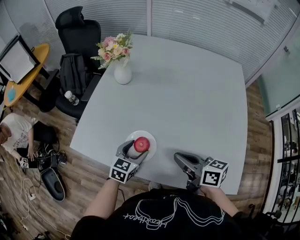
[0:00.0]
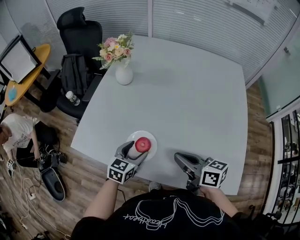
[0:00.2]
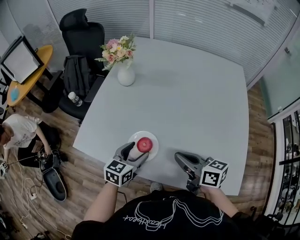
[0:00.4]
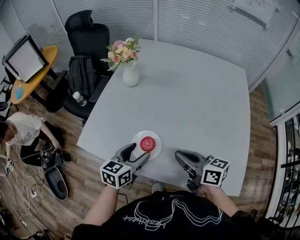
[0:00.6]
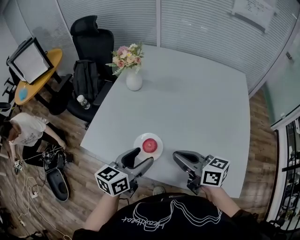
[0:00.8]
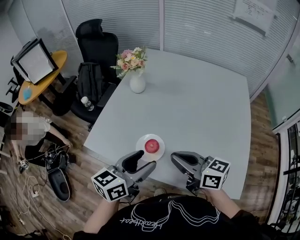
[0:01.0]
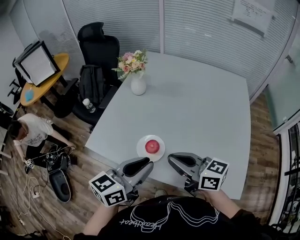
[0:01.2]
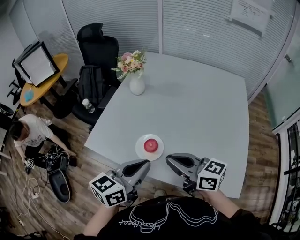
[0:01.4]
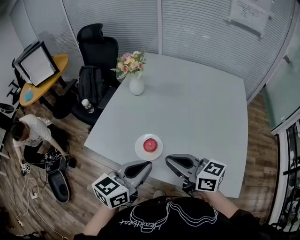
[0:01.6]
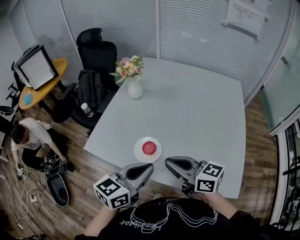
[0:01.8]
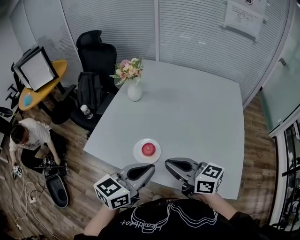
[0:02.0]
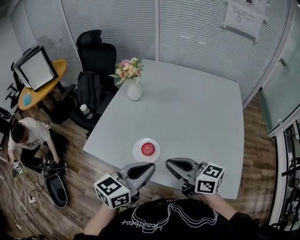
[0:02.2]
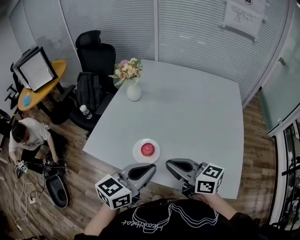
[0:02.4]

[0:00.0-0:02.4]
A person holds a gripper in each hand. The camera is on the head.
0:00.0 to 0:01.2: The left gripper moves upward and backward, roughly 25 cm, changes its angle by about 30 degrees, and closes its fingers; the right gripper shifts about 10 cm upward and to the left, and turns by roughly 20 degrees.
0:01.2 to 0:02.4: The grippers make only small movements.

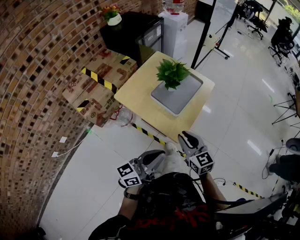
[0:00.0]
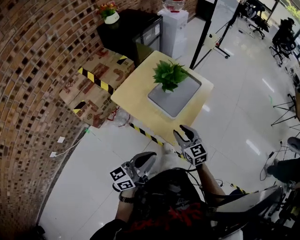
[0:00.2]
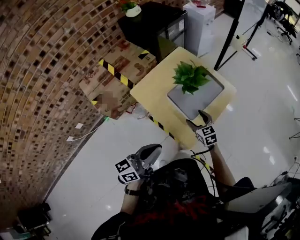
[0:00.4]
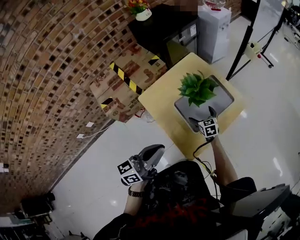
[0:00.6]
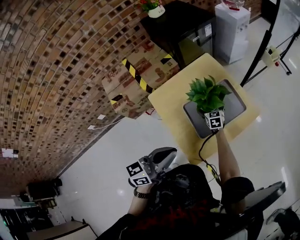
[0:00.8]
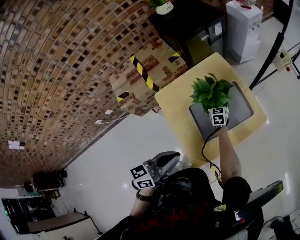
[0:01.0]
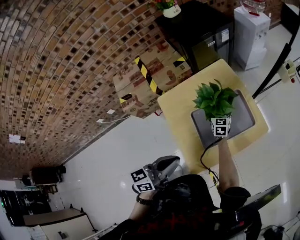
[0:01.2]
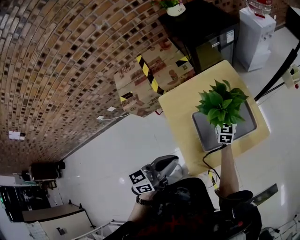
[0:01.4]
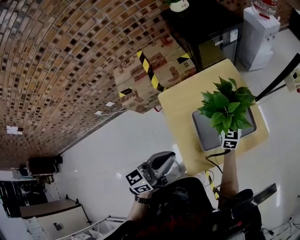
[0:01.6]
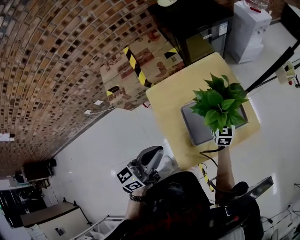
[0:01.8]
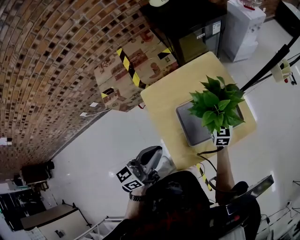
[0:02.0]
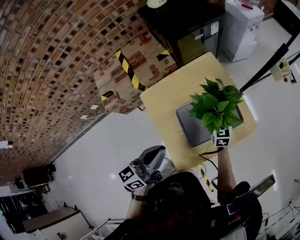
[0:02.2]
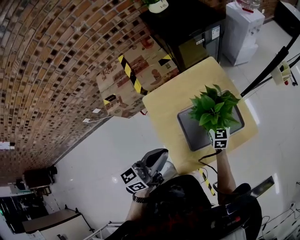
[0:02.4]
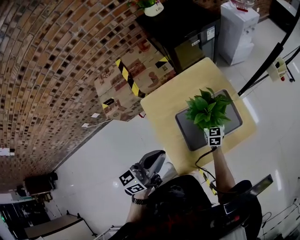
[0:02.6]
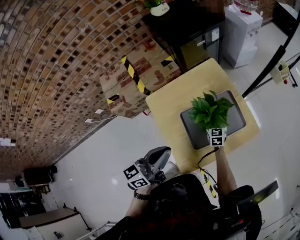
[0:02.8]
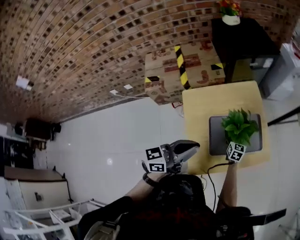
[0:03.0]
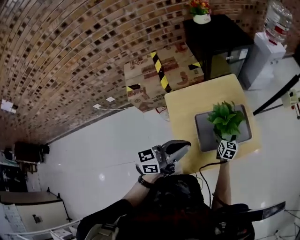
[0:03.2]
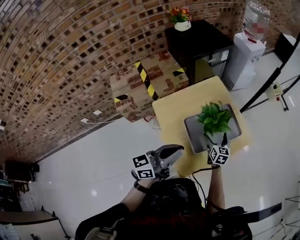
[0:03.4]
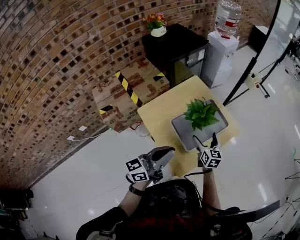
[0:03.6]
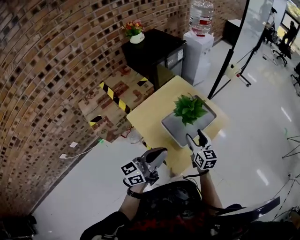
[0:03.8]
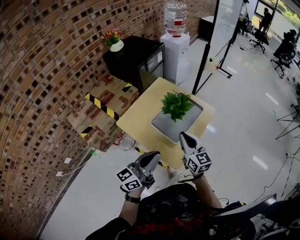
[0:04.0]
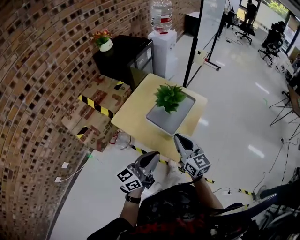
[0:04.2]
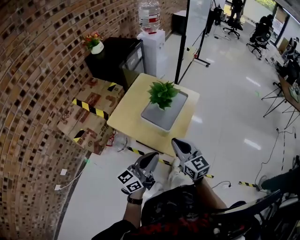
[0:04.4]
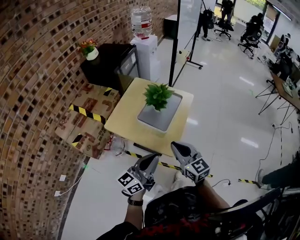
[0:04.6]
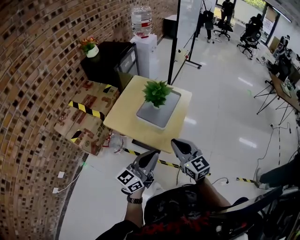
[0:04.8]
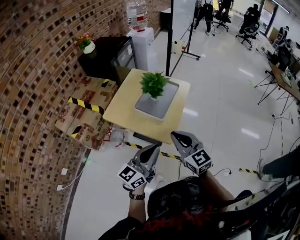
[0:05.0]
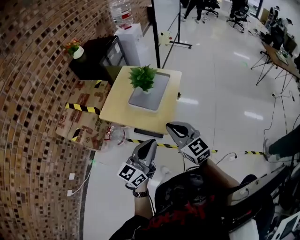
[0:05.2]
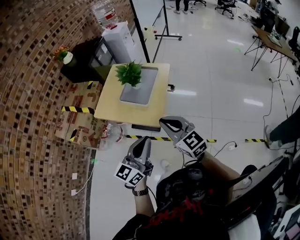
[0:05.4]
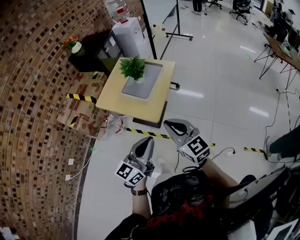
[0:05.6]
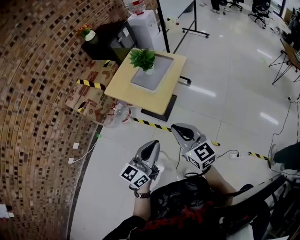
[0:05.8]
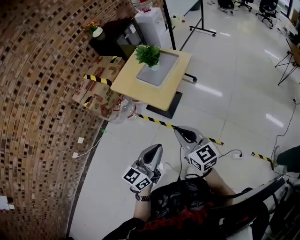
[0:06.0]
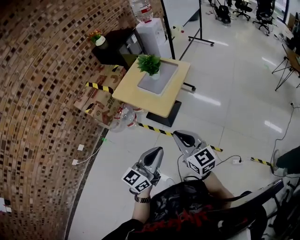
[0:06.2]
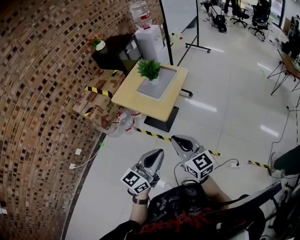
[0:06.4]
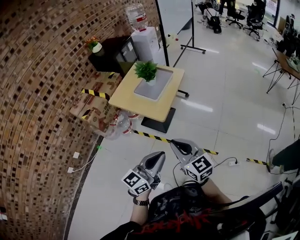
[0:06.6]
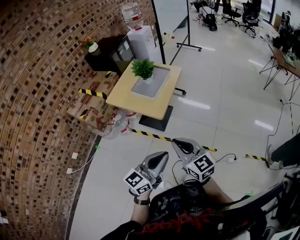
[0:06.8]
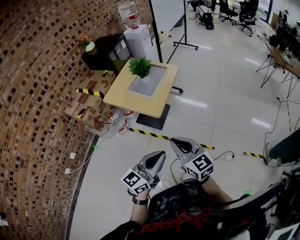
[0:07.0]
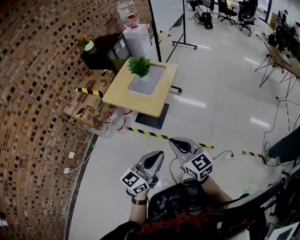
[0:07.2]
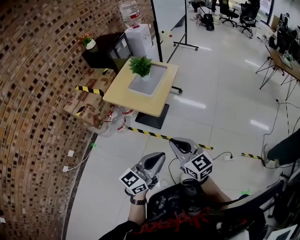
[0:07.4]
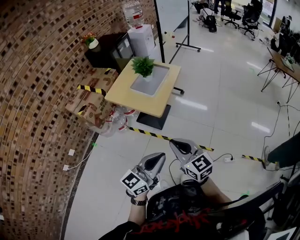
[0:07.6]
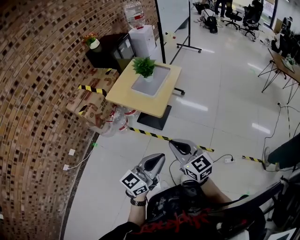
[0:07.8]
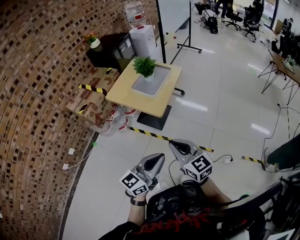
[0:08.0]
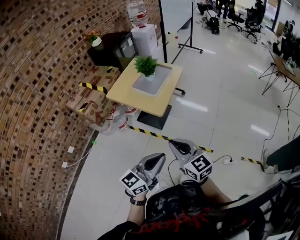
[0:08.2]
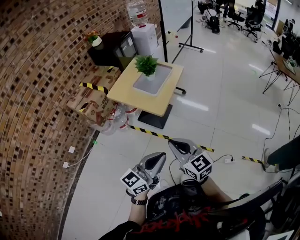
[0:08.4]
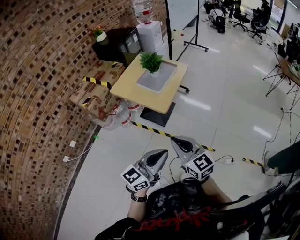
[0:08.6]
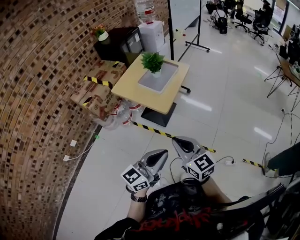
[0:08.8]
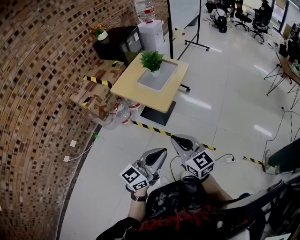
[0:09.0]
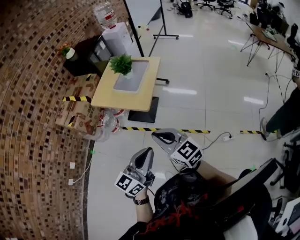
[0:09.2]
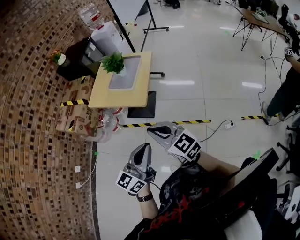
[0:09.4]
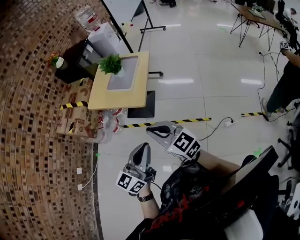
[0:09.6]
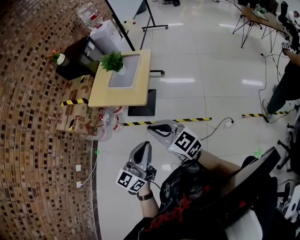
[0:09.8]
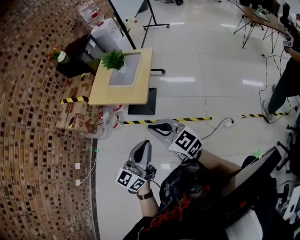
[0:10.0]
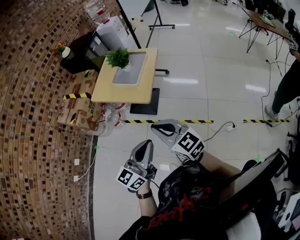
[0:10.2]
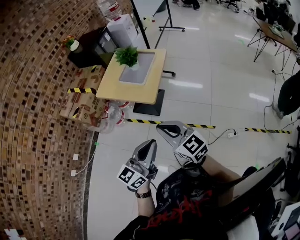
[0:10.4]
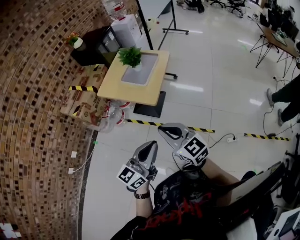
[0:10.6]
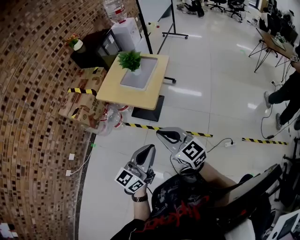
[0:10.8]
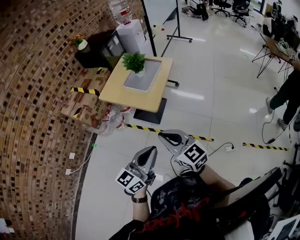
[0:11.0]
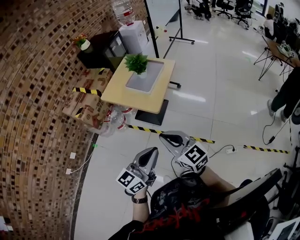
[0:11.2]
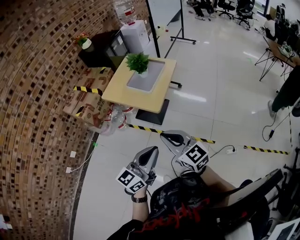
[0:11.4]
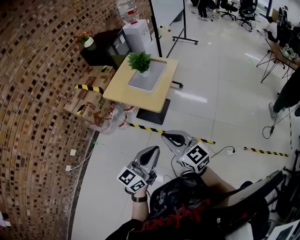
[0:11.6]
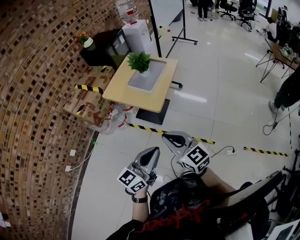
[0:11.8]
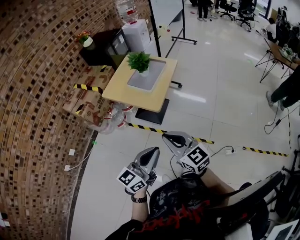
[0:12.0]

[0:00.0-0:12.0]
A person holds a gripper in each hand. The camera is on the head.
0:00.0 to 0:01.6: The right gripper travels forward by about 40 cm, and opens; the left gripper heads forward, covering about 25 cm, and swivels some 40 degrees.
0:01.6 to 0:03.0: The right gripper moves downward, roughly 20 cm.
0:03.0 to 0:04.4: The left gripper moves backward, roughly 20 cm, and swivels some 30 degrees. Meanwhile the right gripper shifts approximately 50 cm backward and upward, changes its angle by some 30 degrees, and closes.
0:04.4 to 0:06.0: The two grippers go about 30 cm backward and to the right. The left gripper rotates some 20 degrees.
0:06.0 to 0:07.6: Both grippers travel together backward, roughly 10 cm.
0:07.6 to 0:10.4: The grippers stay close to where they were, moving slightly.
0:10.4 to 0:12.0: Neither gripper changes place.

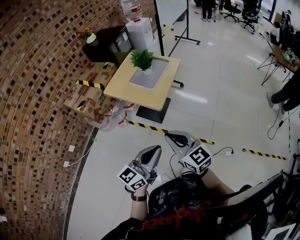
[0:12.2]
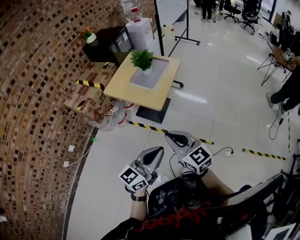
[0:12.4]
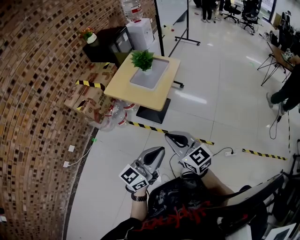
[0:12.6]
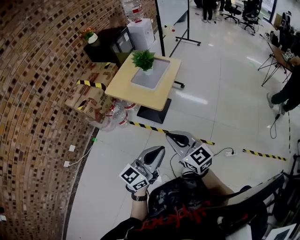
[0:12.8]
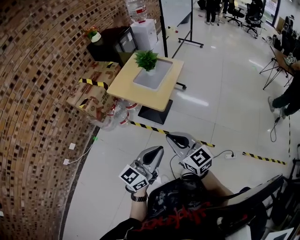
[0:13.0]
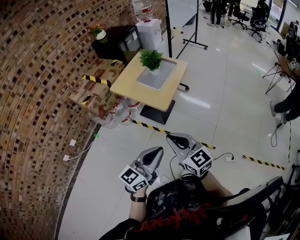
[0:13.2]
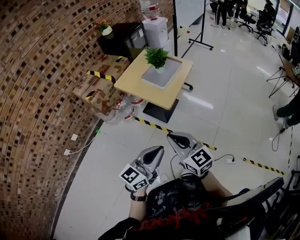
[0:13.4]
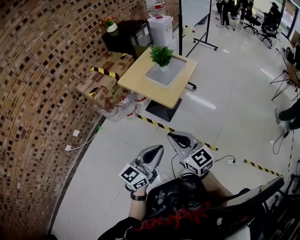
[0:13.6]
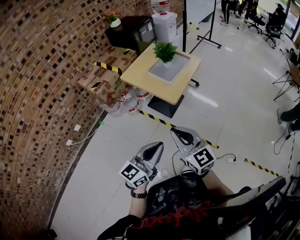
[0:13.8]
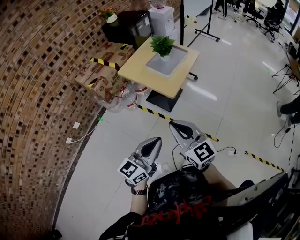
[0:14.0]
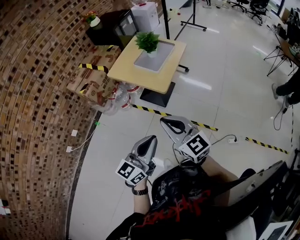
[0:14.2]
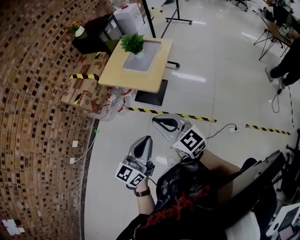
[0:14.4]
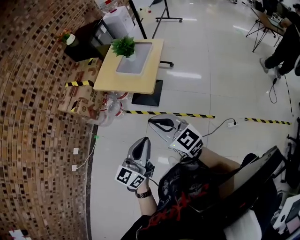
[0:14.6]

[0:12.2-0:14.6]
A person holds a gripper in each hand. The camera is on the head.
0:12.2 to 0:14.6: There are only small adjustments of the grippers.

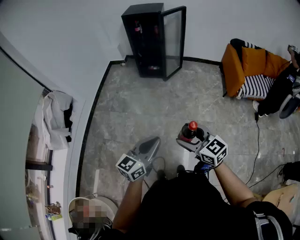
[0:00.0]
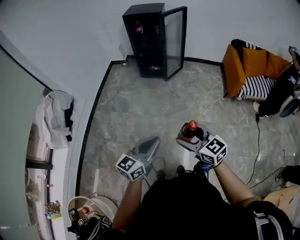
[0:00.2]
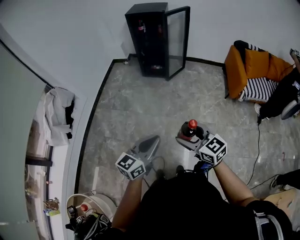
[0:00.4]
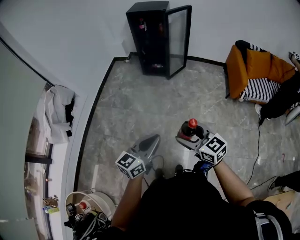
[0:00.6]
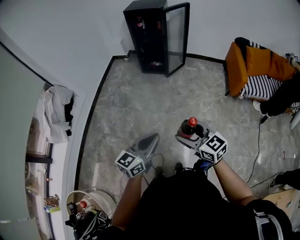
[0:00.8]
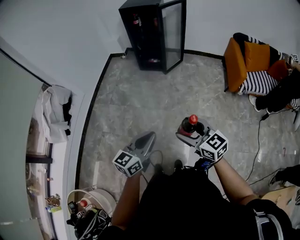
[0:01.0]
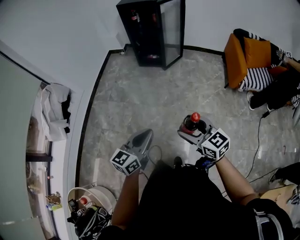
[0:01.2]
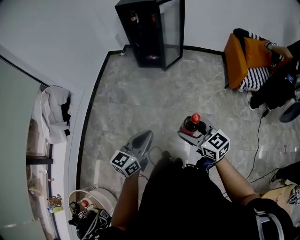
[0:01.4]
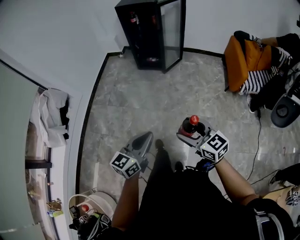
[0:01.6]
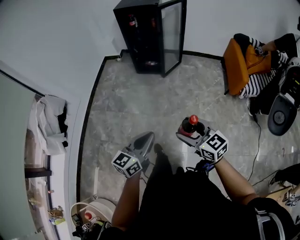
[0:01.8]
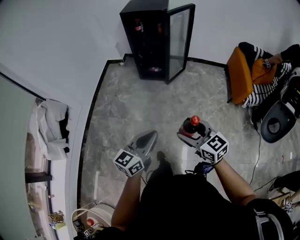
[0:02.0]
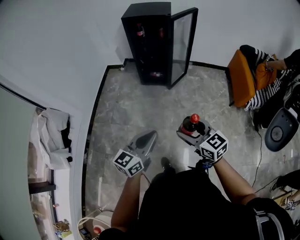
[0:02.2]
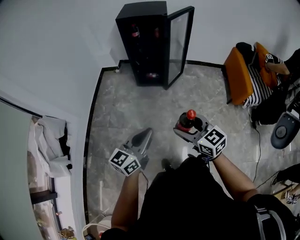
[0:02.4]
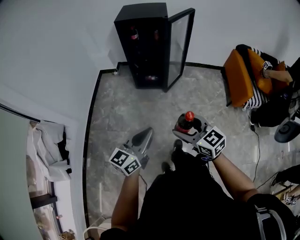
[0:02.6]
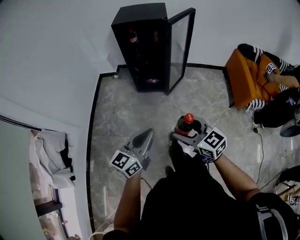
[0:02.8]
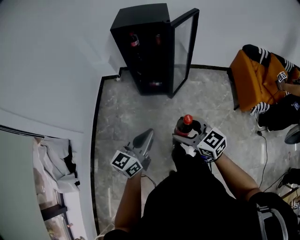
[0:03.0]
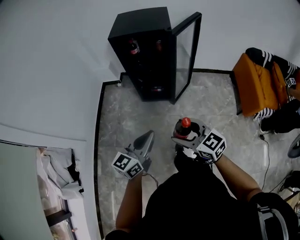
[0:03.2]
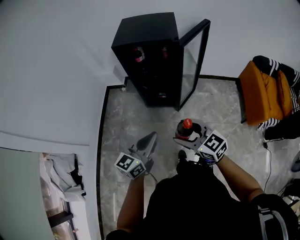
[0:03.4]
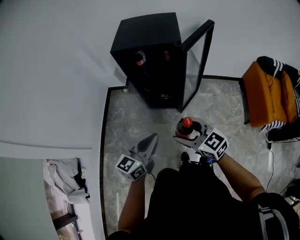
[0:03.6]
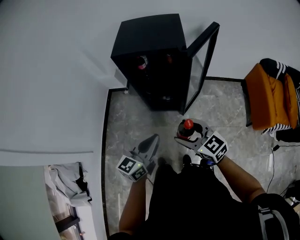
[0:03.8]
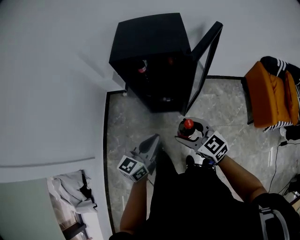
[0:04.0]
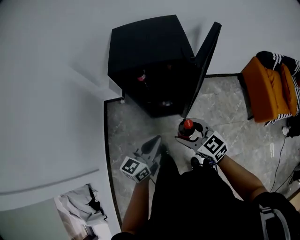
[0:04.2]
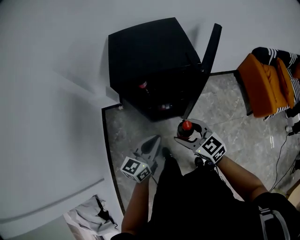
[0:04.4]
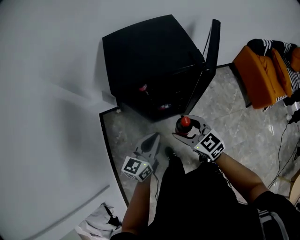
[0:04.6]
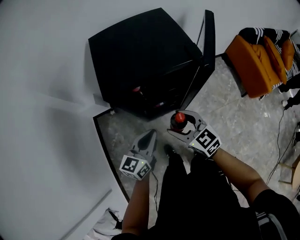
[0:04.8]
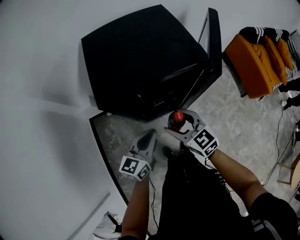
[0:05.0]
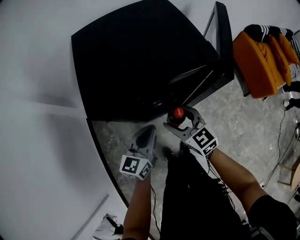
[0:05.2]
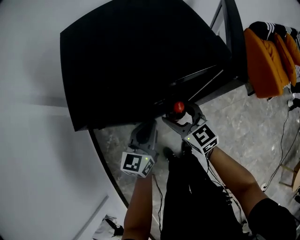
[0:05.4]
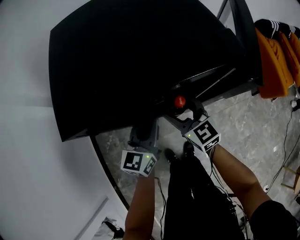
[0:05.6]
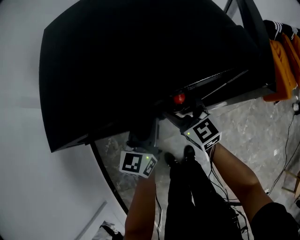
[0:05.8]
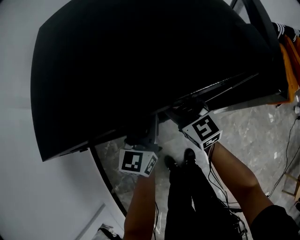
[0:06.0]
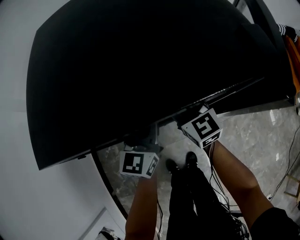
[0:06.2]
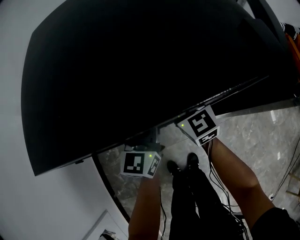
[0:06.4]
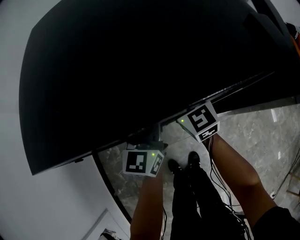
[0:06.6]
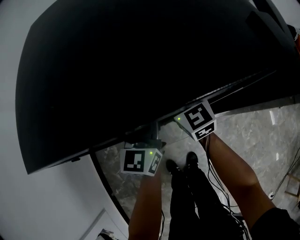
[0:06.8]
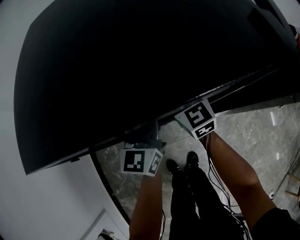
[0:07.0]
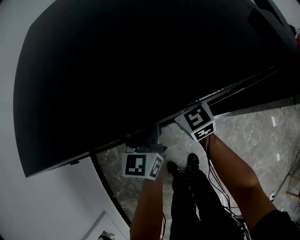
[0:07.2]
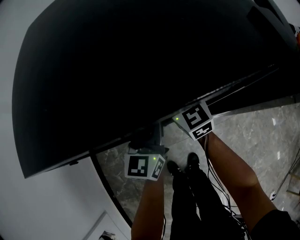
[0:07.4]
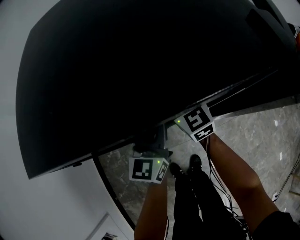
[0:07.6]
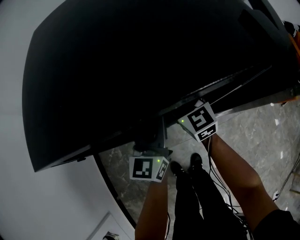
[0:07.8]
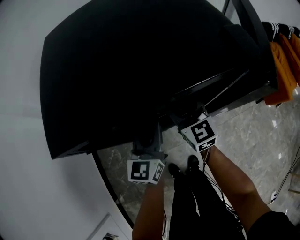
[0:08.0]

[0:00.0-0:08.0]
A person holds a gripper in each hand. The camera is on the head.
0:00.0 to 0:01.6: Both grippers travel together forward, about 5 cm.
0:01.6 to 0:03.2: The pair of grippers is taken forward, approximately 50 cm.
0:03.2 to 0:04.8: The pair of grippers is taken forward, roughly 40 cm. The right gripper changes its angle by about 30 degrees.
0:04.8 to 0:06.4: The two grippers go about 30 cm forward and downward.
0:06.4 to 0:08.0: The grippers make only small movements.
